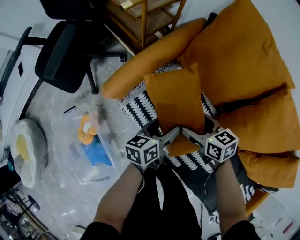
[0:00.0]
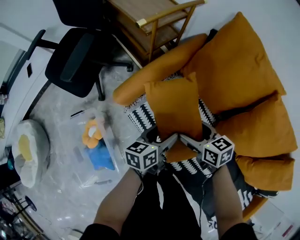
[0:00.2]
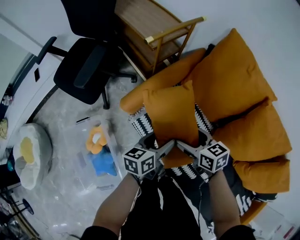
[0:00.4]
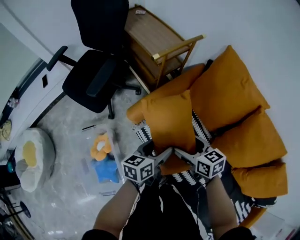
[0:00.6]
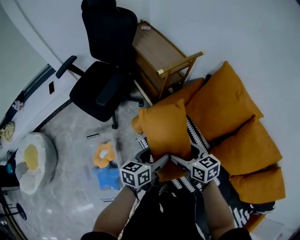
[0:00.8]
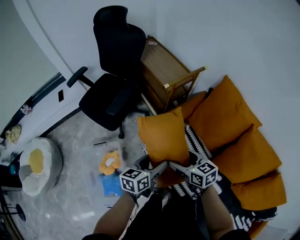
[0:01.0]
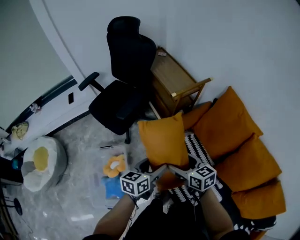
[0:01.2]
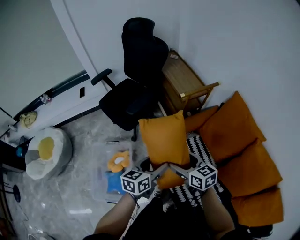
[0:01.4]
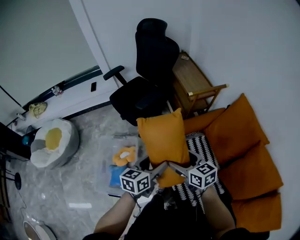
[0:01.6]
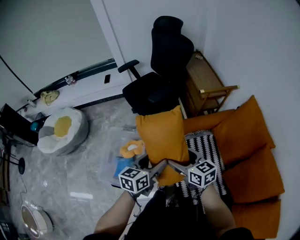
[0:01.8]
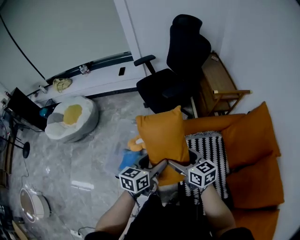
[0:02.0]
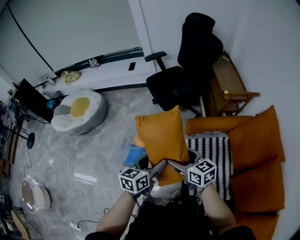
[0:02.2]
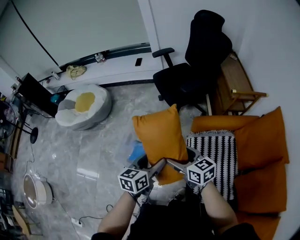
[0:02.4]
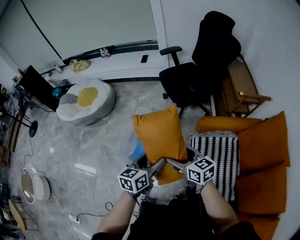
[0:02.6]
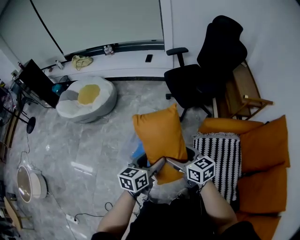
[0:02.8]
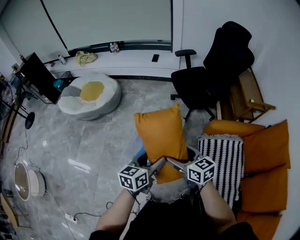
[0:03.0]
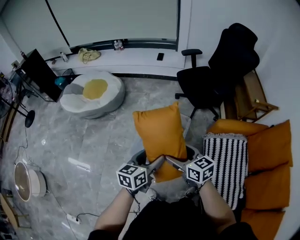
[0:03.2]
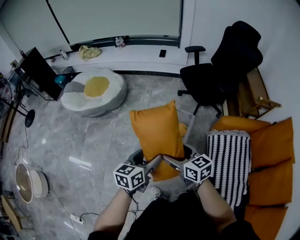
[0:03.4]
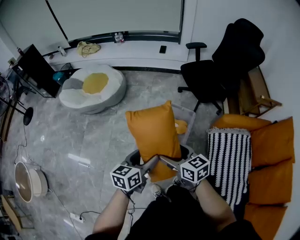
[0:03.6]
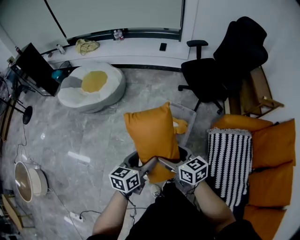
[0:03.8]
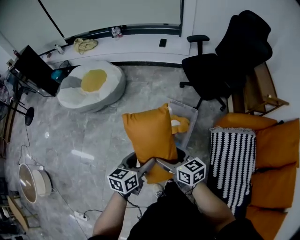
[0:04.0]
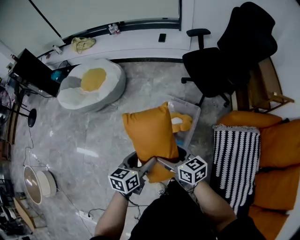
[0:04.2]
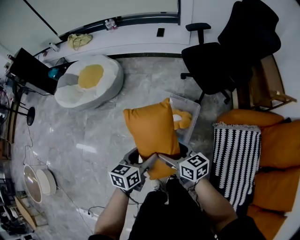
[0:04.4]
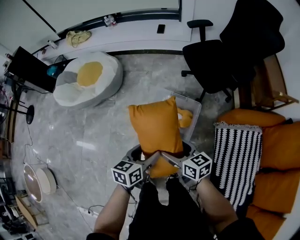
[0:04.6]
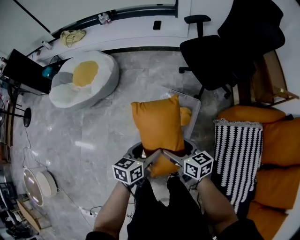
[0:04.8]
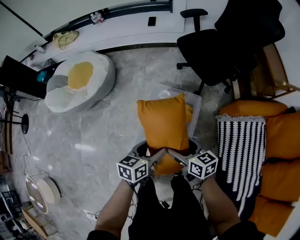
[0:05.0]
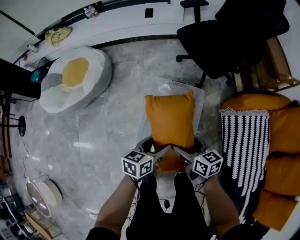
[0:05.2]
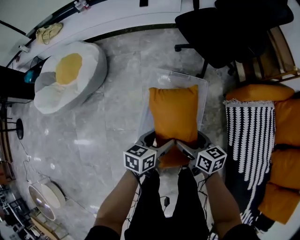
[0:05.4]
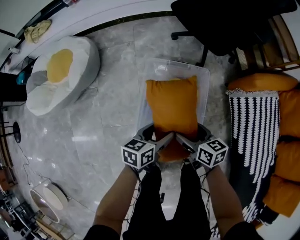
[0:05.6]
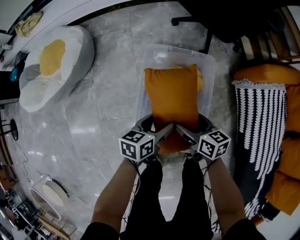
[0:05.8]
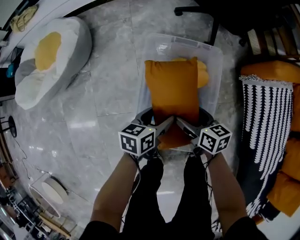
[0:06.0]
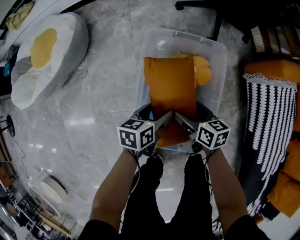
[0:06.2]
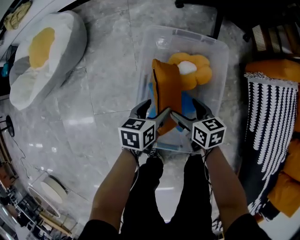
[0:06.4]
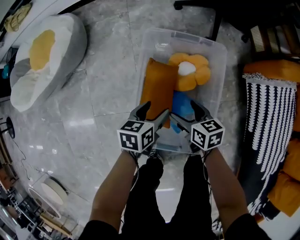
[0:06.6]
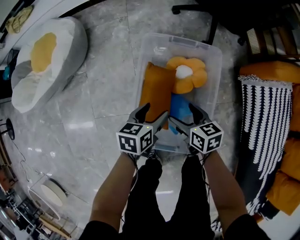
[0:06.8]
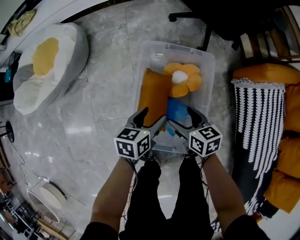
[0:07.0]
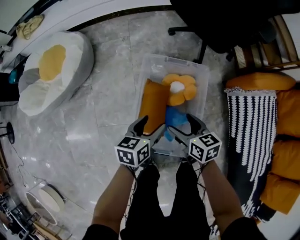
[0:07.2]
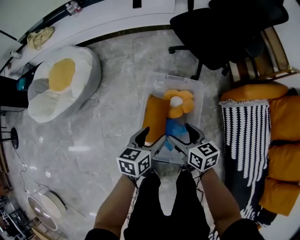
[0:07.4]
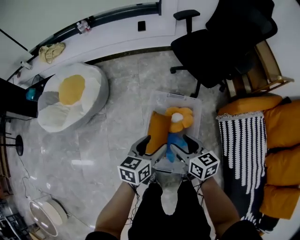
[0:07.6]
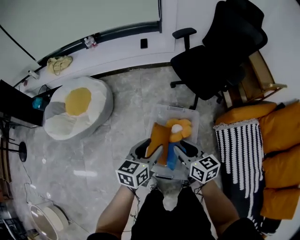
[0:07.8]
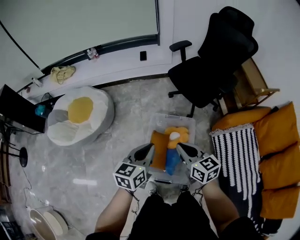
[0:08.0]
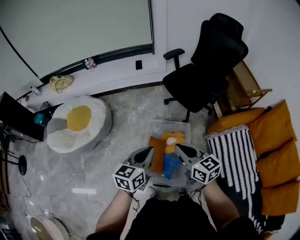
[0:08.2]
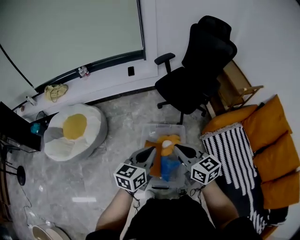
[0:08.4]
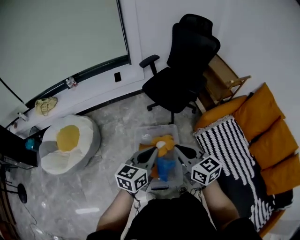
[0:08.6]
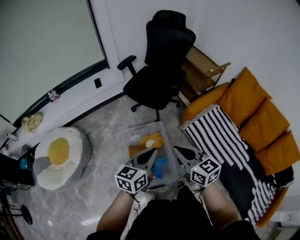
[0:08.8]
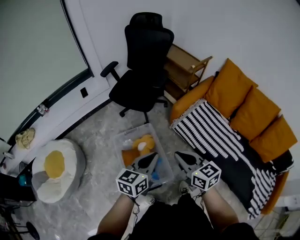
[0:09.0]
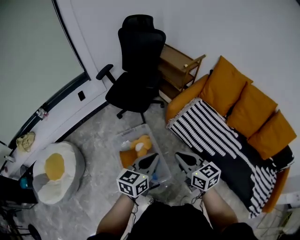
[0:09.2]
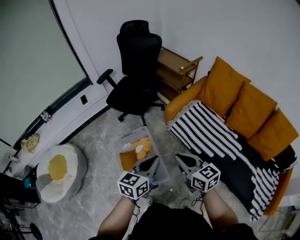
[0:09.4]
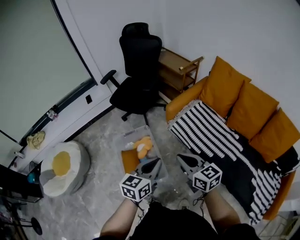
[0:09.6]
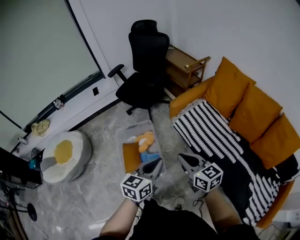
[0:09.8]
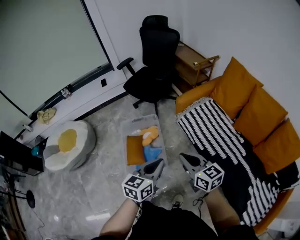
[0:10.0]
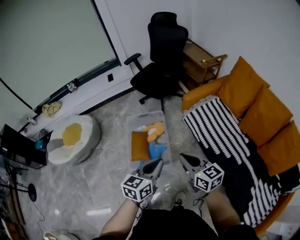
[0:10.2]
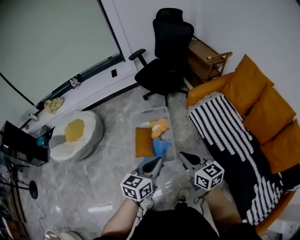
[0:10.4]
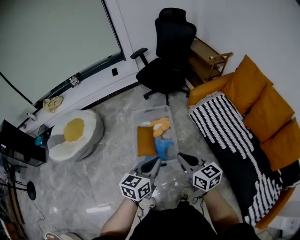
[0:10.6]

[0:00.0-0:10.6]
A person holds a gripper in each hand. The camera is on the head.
0.0 to 1.6 s: The two grippers go about 35 cm upward and to the left. The right gripper swivels about 30 degrees; the left gripper changes its angle by approximately 30 degrees.
1.6 to 3.0 s: The left gripper changes place by some 35 cm, and rotates some 30 degrees, while the right gripper shifts by some 35 cm, and rotates some 30 degrees.
3.0 to 4.6 s: The right gripper is displaced downward, forward and to the left by approximately 20 cm. Meanwhile the left gripper travels forward, downward and to the left by about 20 cm.
4.6 to 6.0 s: Both grippers move downward, approximately 30 cm. The right gripper changes its angle by approximately 30 degrees, while the left gripper rotates roughly 20 degrees.
6.0 to 7.6 s: Both grippers move upward, about 25 cm.
7.6 to 9.0 s: The grippers both shift upward by approximately 20 cm. The left gripper turns by some 40 degrees, and closes, while the right gripper changes its angle by about 30 degrees, and closes up.
9.0 to 10.6 s: The two grippers go roughly 20 cm backward.

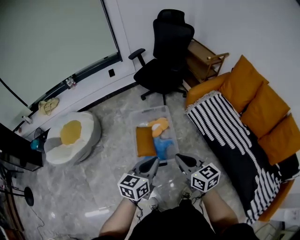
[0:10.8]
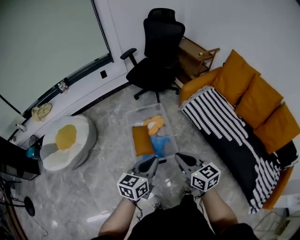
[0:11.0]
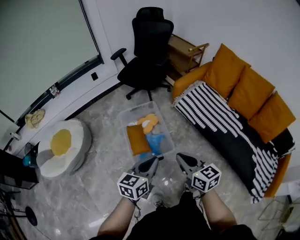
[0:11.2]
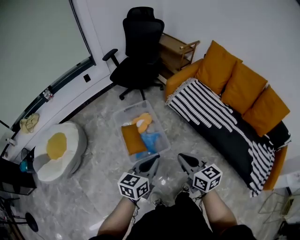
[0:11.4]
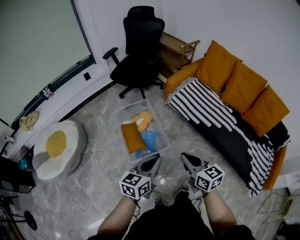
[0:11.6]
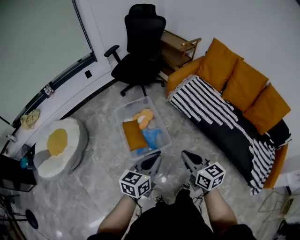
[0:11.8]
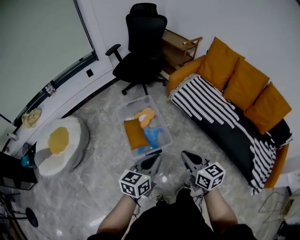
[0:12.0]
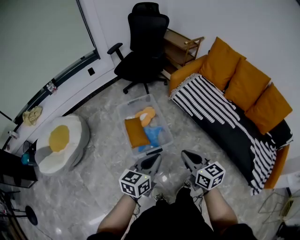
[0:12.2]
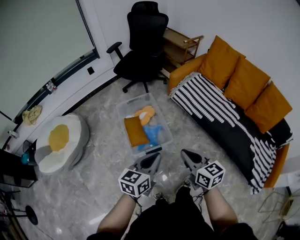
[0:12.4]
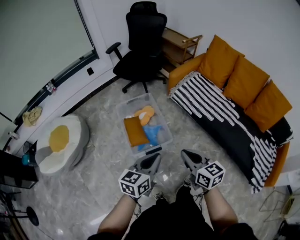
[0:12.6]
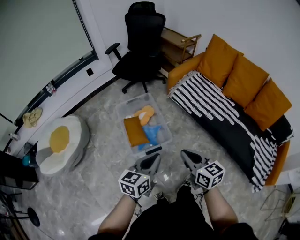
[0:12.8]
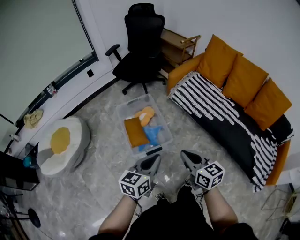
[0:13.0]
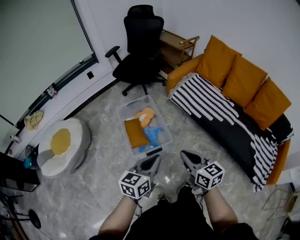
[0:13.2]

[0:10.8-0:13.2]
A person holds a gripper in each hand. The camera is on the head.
10.8 to 12.0 s: Both grippers travel together backward, roughly 10 cm.
12.0 to 13.2 s: The grippers make only small movements.

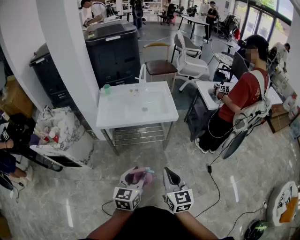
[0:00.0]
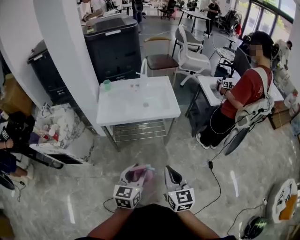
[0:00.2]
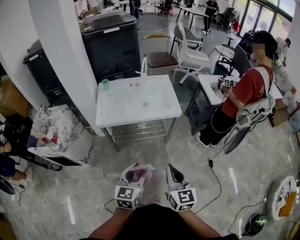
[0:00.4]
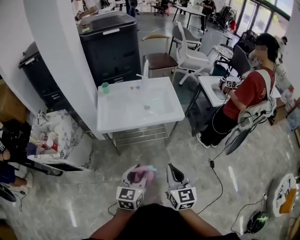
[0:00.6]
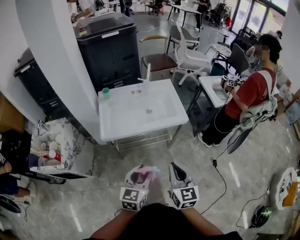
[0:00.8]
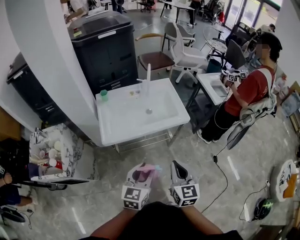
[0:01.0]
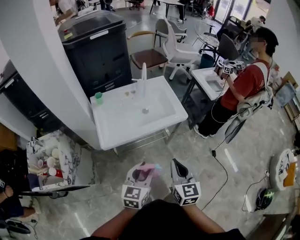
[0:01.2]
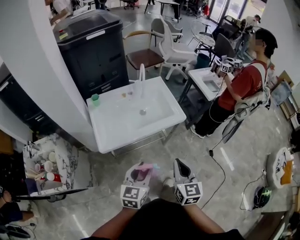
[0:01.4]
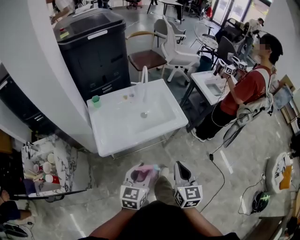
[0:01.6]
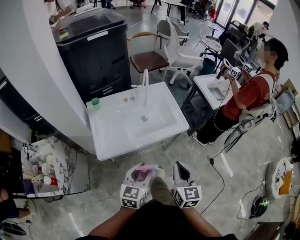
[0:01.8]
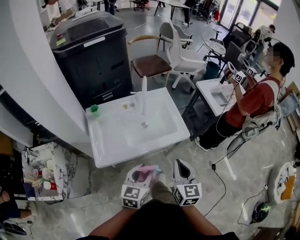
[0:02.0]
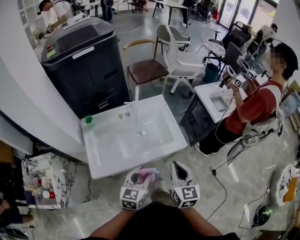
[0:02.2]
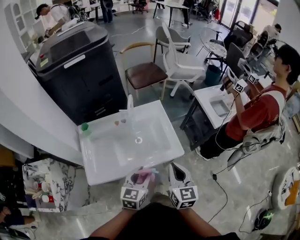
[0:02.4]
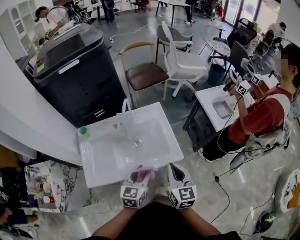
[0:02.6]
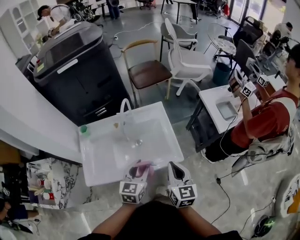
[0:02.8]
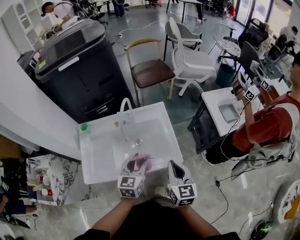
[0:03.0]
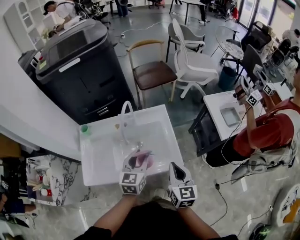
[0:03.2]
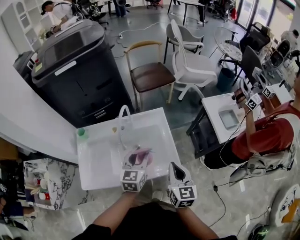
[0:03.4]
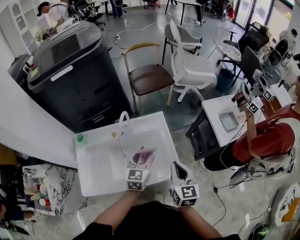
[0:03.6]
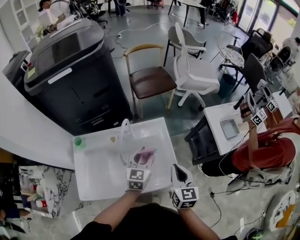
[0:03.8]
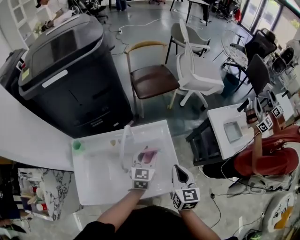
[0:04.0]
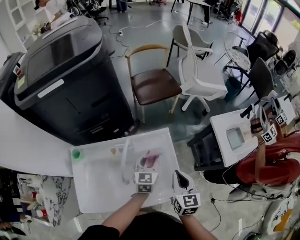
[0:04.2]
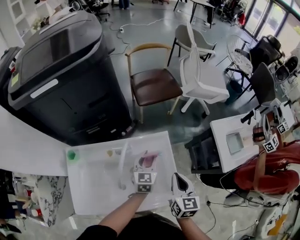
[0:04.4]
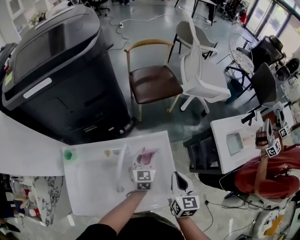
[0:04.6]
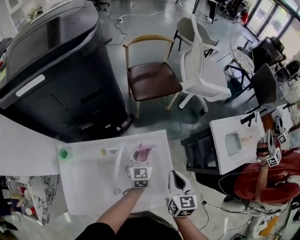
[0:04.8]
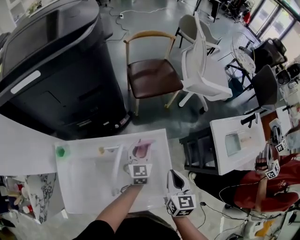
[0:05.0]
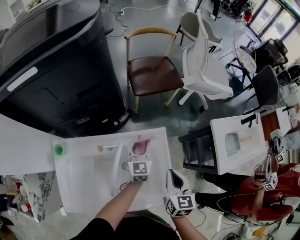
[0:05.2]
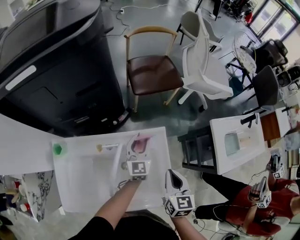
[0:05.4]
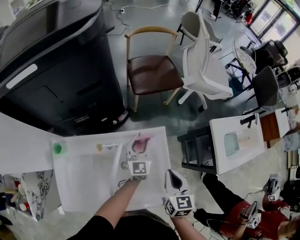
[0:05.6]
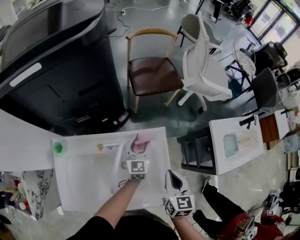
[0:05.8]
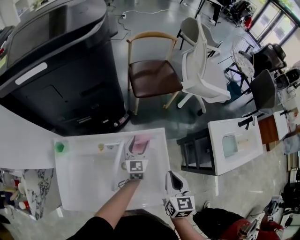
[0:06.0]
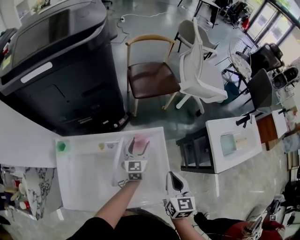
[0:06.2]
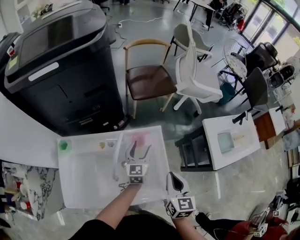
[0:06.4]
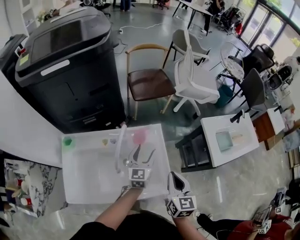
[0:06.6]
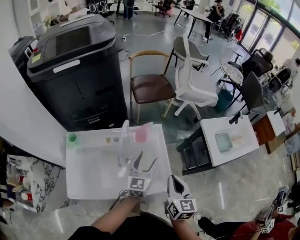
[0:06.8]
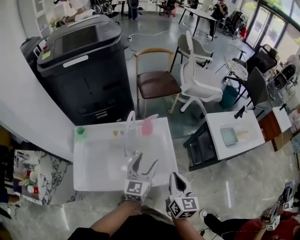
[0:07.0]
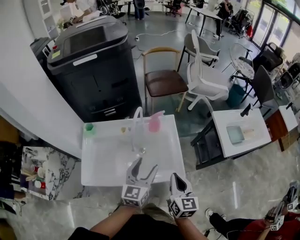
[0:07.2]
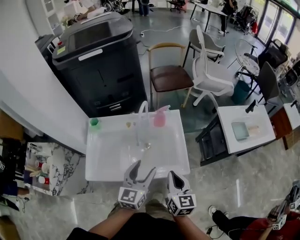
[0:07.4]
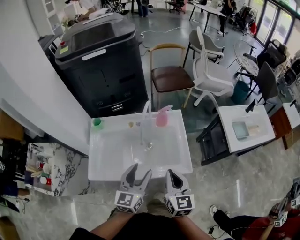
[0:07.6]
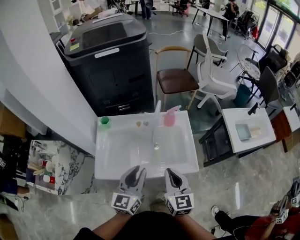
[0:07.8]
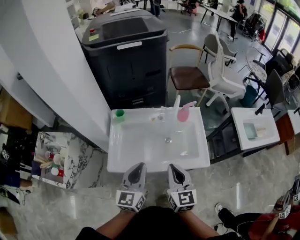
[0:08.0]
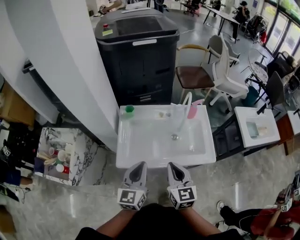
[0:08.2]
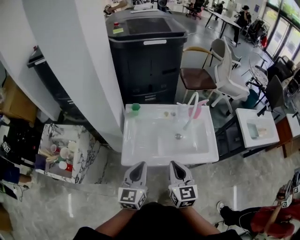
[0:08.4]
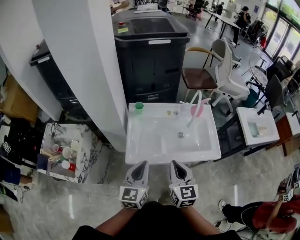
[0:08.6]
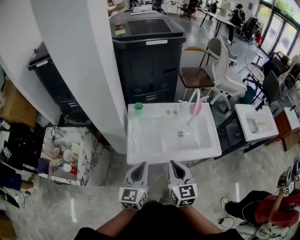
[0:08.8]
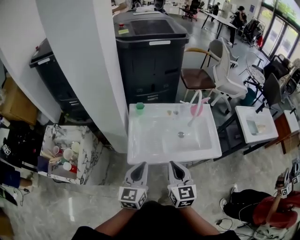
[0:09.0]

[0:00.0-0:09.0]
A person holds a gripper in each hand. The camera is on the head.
0.0 to 1.6 s: Both grippers travel together forward and to the left, some 30 cm. The right gripper rotates some 20 degrees.
1.6 to 3.0 s: Both grippers move forward, approximately 35 cm.
3.0 to 4.4 s: The grippers both shift forward by some 25 cm.
4.4 to 6.0 s: The left gripper shifts some 5 cm forward.
6.0 to 7.6 s: The right gripper goes approximately 25 cm backward. The left gripper travels backward and upward by some 40 cm.
7.6 to 9.0 s: The left gripper shifts approximately 30 cm to the left and backward, and closes up; the right gripper shifts about 30 cm to the left.

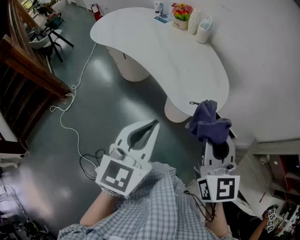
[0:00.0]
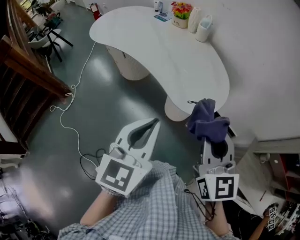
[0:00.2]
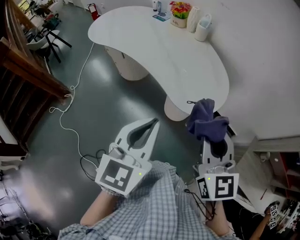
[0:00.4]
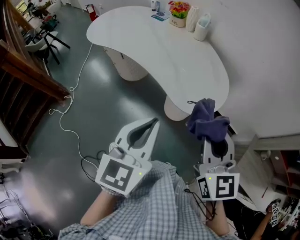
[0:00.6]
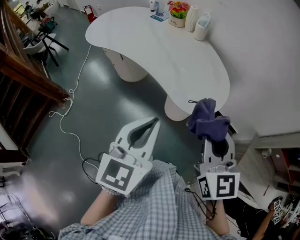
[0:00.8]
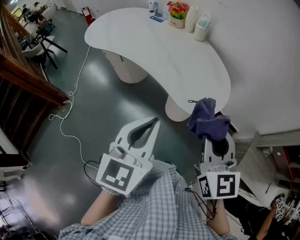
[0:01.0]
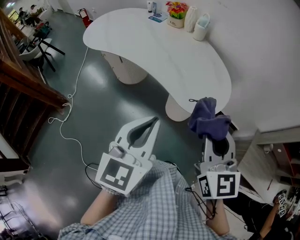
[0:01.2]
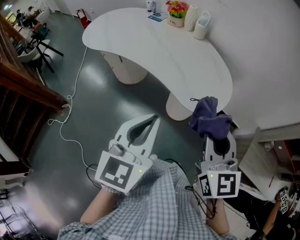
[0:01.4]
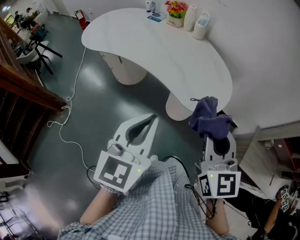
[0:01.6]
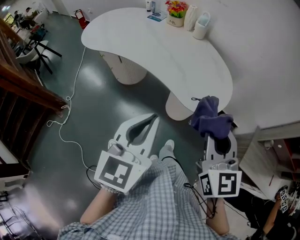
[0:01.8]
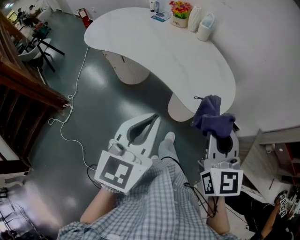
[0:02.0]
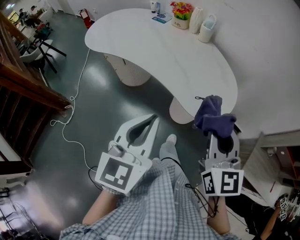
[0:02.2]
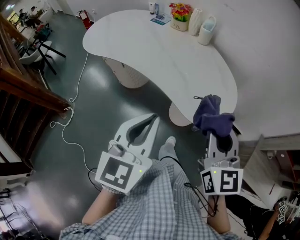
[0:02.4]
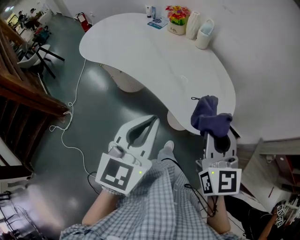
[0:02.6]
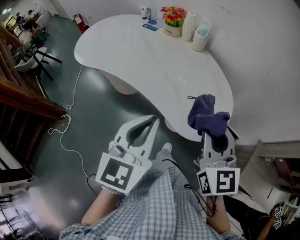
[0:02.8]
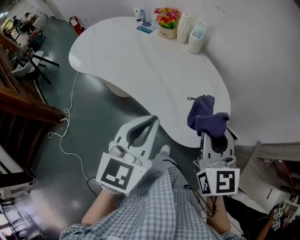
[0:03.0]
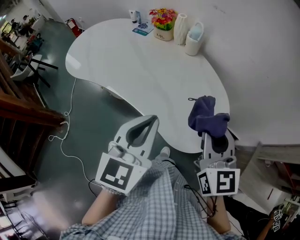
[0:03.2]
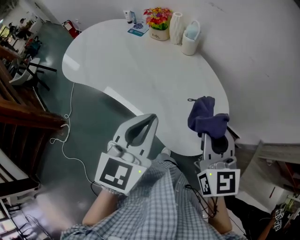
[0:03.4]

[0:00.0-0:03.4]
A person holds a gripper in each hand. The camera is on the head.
0.0 to 1.6 s: Both grippers travel together to the left, some 10 cm.
1.6 to 3.4 s: Both grippers move forward, approximately 25 cm.
